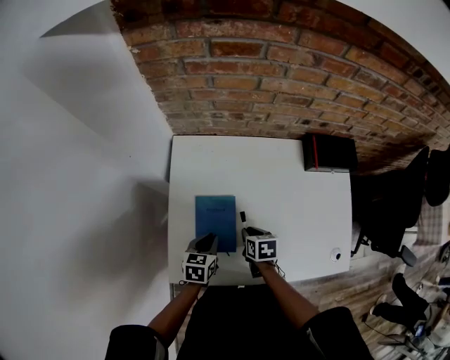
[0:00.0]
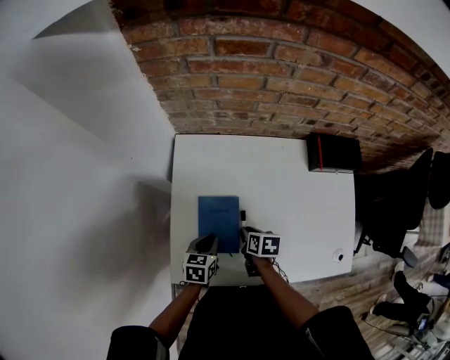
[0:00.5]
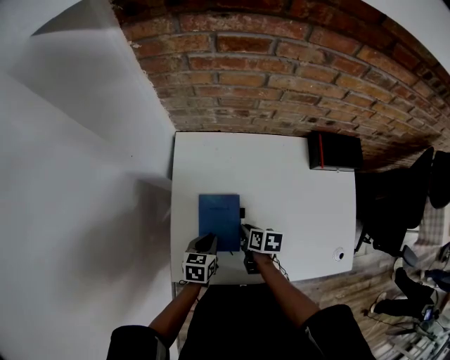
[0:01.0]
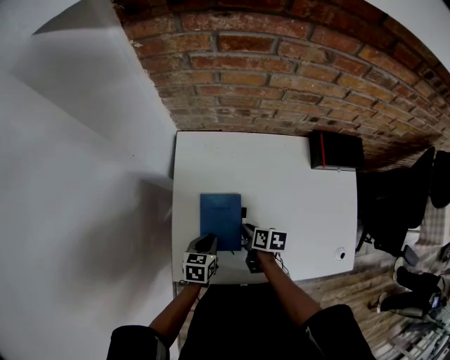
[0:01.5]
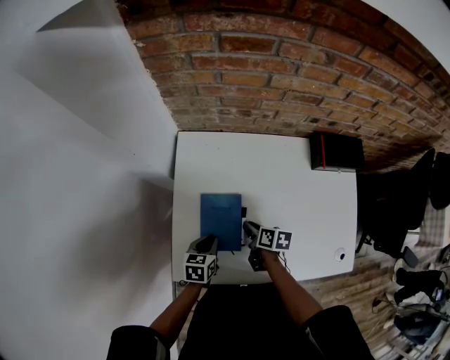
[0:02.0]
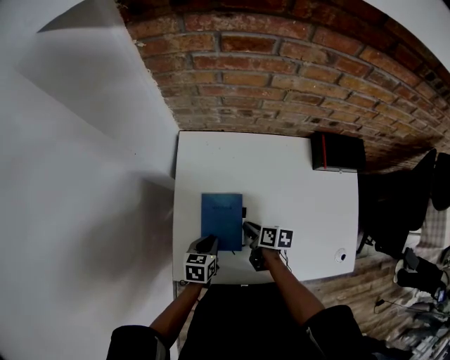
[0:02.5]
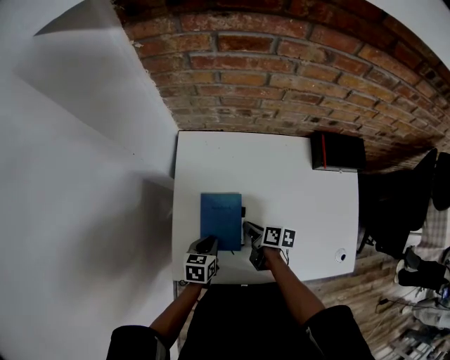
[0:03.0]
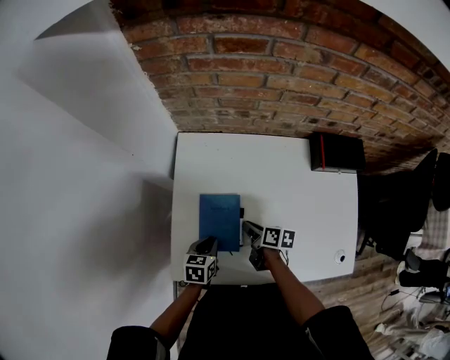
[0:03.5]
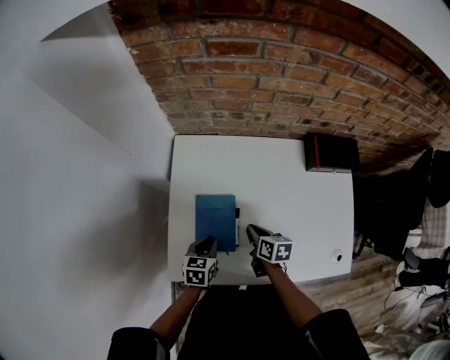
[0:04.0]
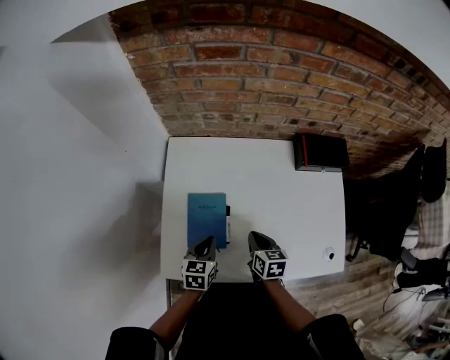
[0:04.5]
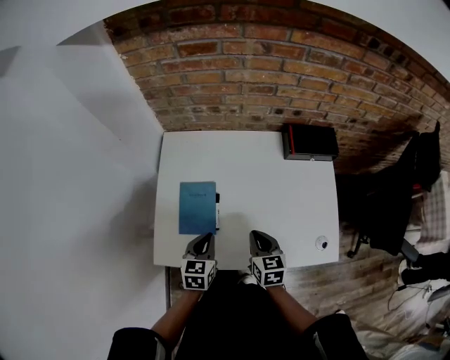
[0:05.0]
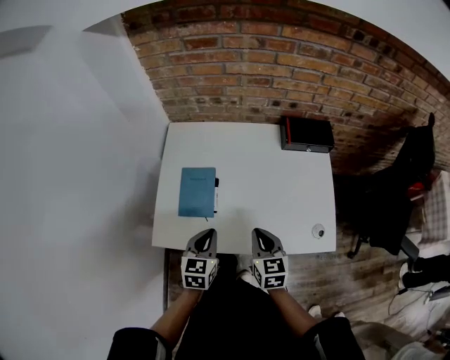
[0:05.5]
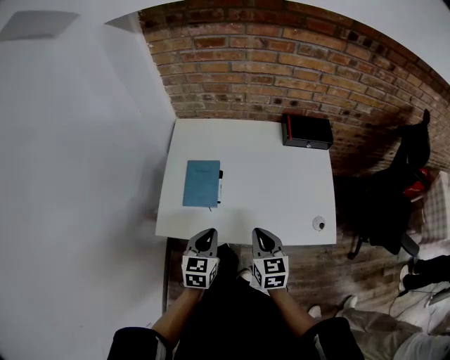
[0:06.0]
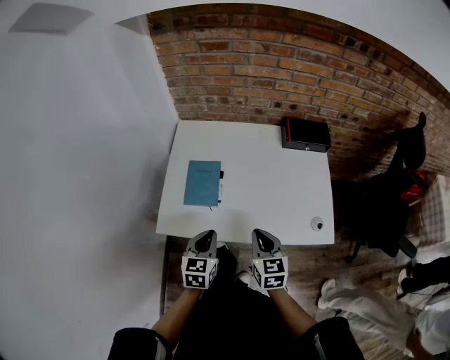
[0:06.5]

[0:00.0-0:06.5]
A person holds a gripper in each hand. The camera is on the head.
0:00.0 to 0:02.0: The right gripper rotates approximately 20 degrees.
0:02.0 to 0:04.5: The left gripper moves upward, roughly 5 cm. The right gripper travels to the right, upward and backward by approximately 10 cm, and changes its angle by roughly 30 degrees.
0:04.5 to 0:06.5: The grippers both shift backward and upward by some 20 cm. The right gripper swivels about 30 degrees.

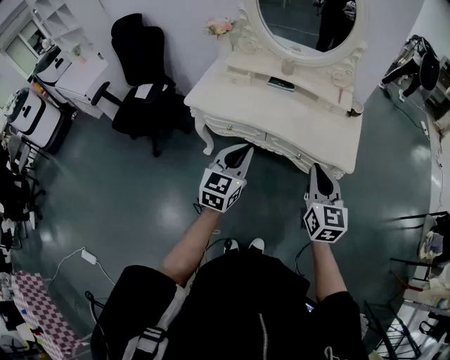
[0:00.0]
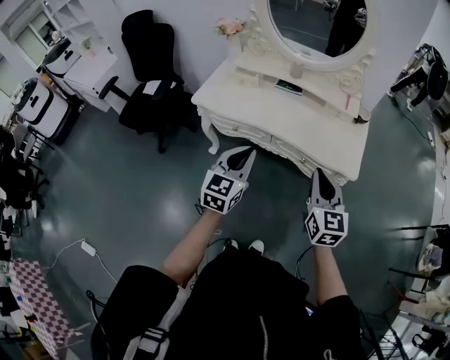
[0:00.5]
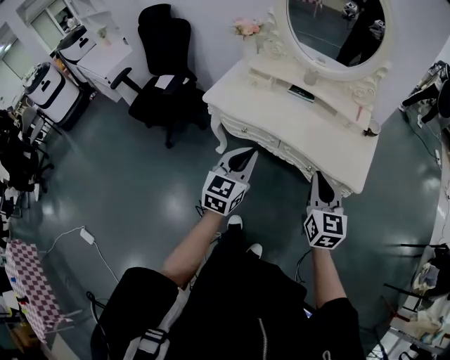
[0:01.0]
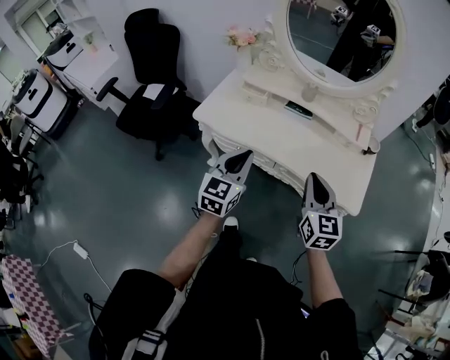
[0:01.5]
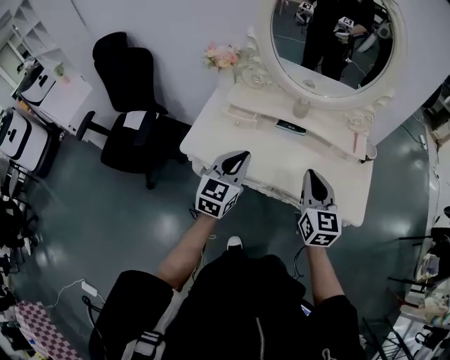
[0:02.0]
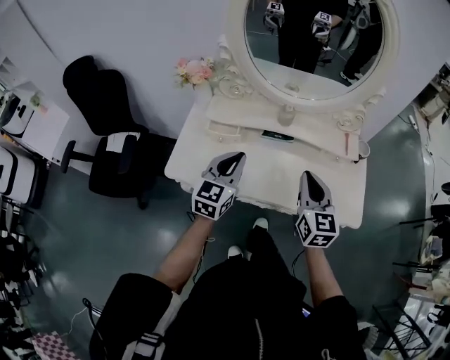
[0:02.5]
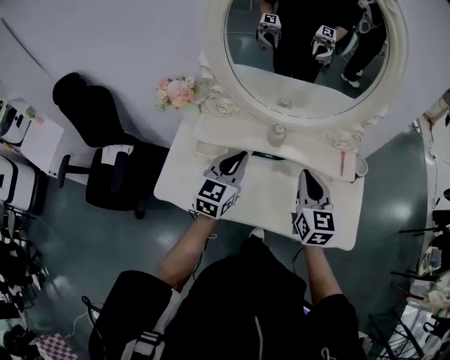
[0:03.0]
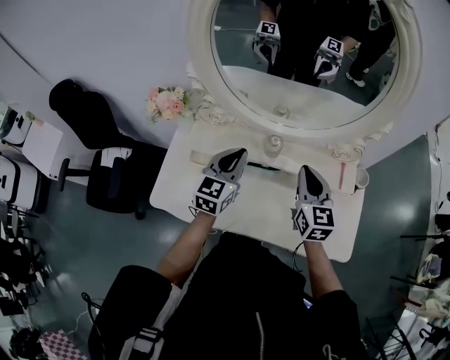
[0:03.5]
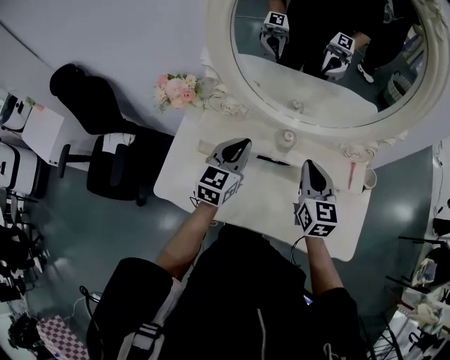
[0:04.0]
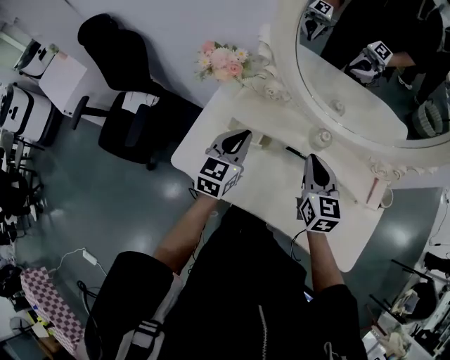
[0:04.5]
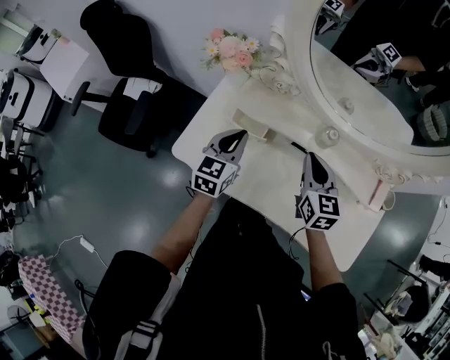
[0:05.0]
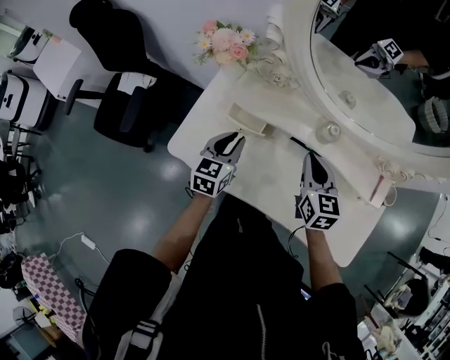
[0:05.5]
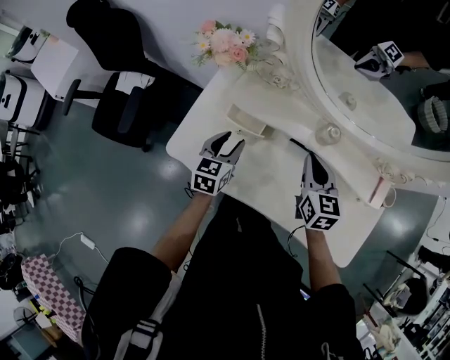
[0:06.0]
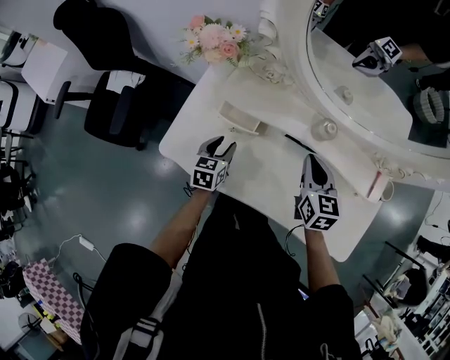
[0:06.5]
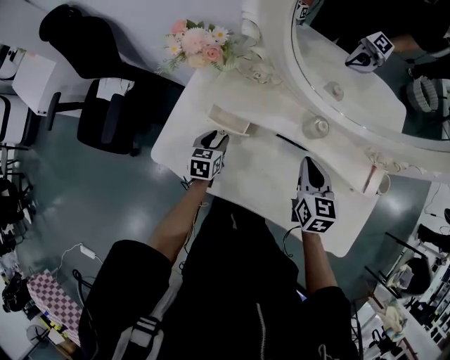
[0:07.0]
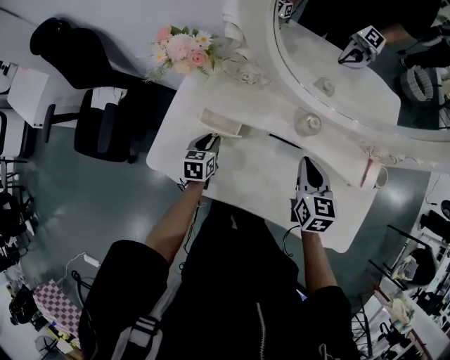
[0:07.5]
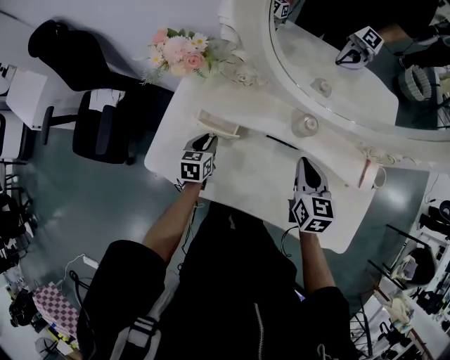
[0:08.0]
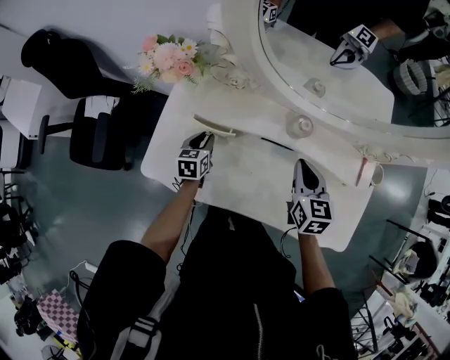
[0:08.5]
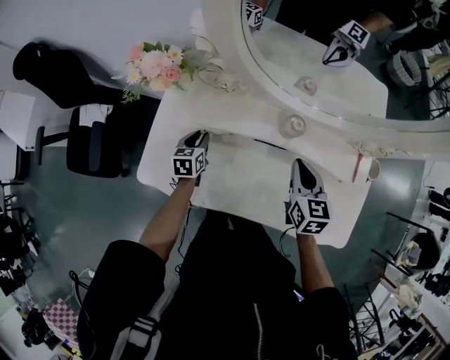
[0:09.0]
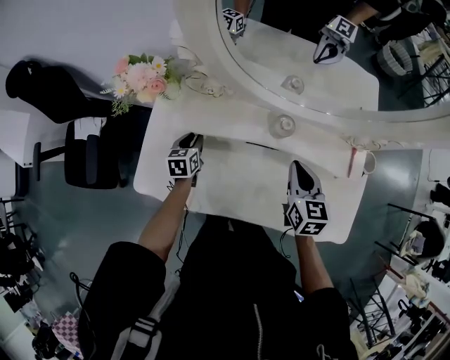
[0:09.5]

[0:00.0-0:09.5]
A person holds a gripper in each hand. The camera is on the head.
0:00.0 to 0:02.0: Both grippers travel together forward and to the left, approximately 25 cm.
0:02.0 to 0:04.0: Both grippers move forward, roughly 30 cm.
0:04.0 to 0:05.5: The two grippers go roughly 15 cm to the left and downward. The left gripper changes its angle by approximately 20 degrees.
0:05.5 to 0:07.5: The right gripper is displaced to the right by some 5 cm. Meanwhile the left gripper moves downward, about 15 cm, and opens and closes again.
0:07.5 to 0:09.5: The left gripper heads forward, covering about 5 cm.

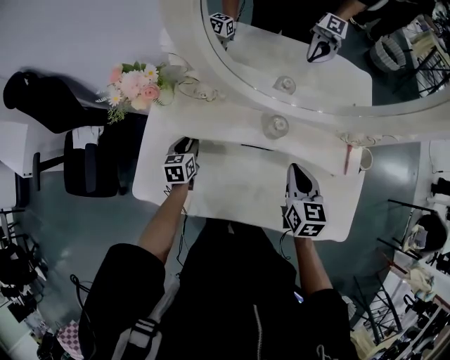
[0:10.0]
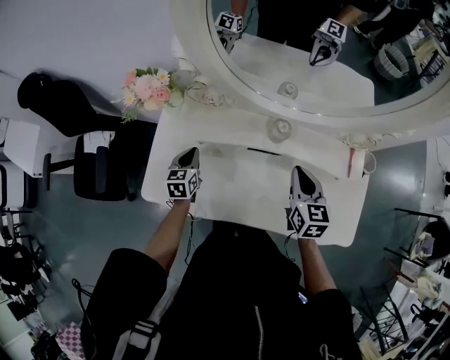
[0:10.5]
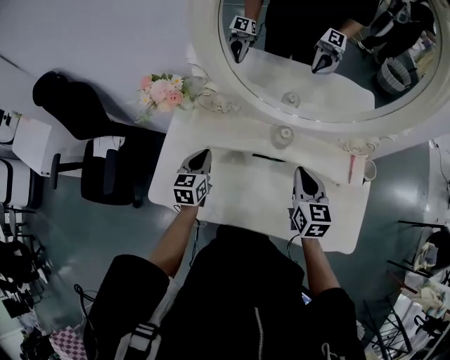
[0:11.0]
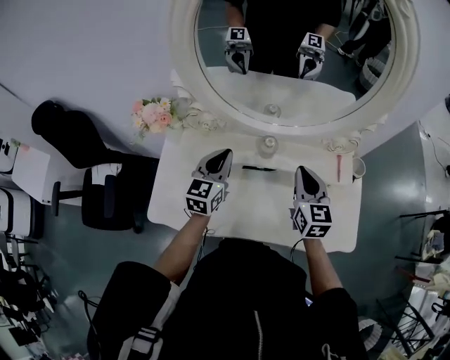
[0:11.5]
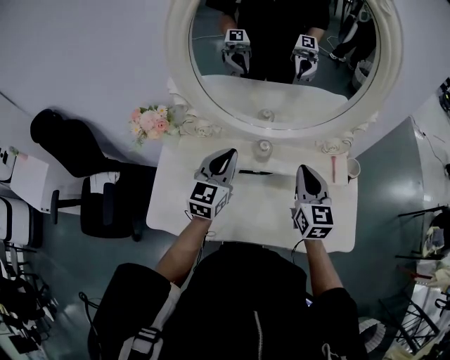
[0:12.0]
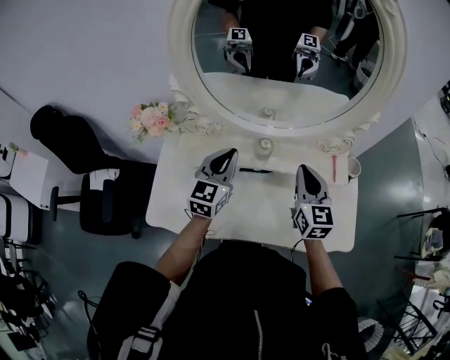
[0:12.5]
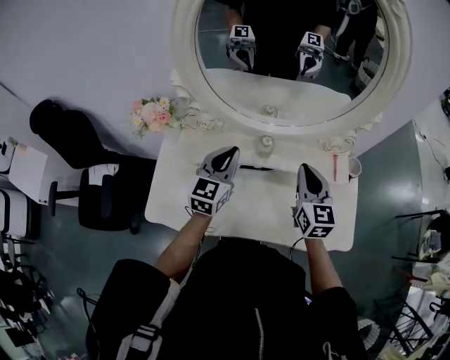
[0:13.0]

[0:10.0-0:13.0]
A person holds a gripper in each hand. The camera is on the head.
0:10.0 to 0:11.5: The left gripper travels upward and to the right by roughly 30 cm, swivels some 40 degrees, and closes its fingers, while the right gripper heads upward, covering roughly 10 cm.
0:11.5 to 0:13.0: There are only small adjustments of the grippers.

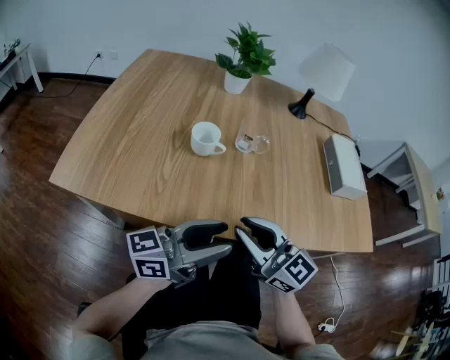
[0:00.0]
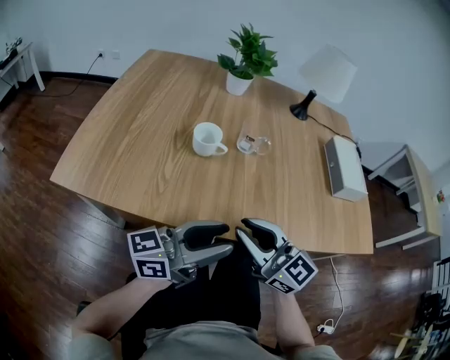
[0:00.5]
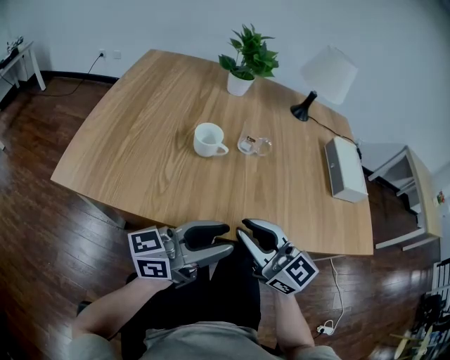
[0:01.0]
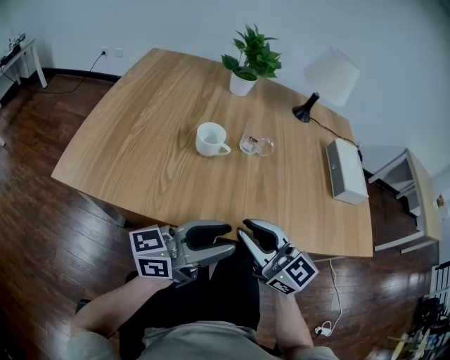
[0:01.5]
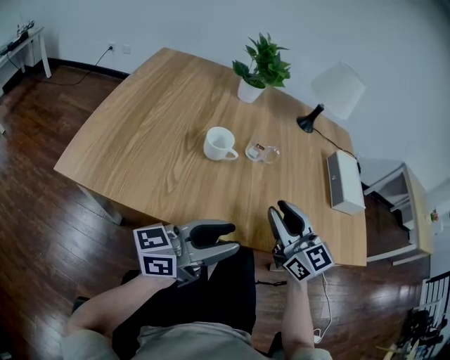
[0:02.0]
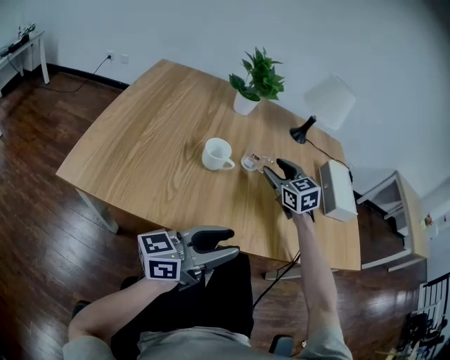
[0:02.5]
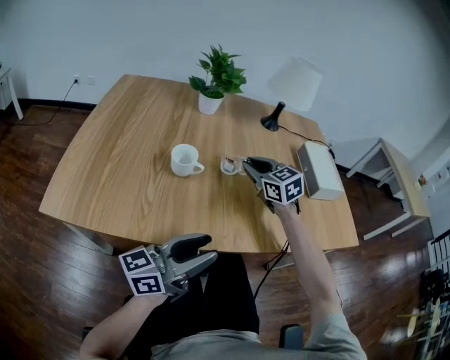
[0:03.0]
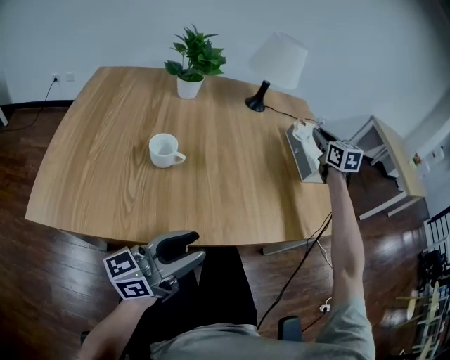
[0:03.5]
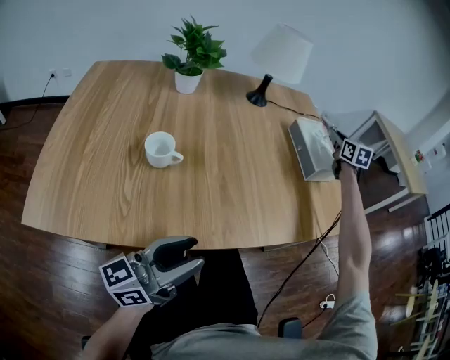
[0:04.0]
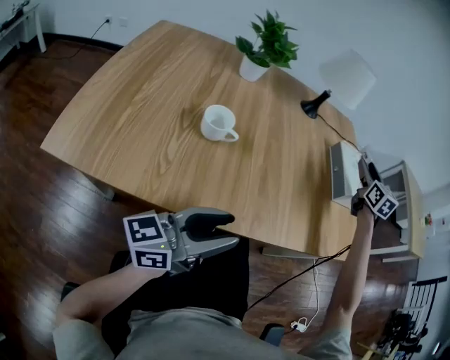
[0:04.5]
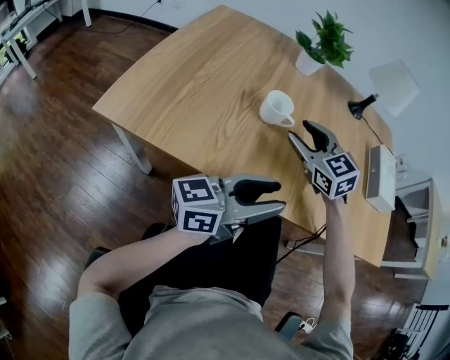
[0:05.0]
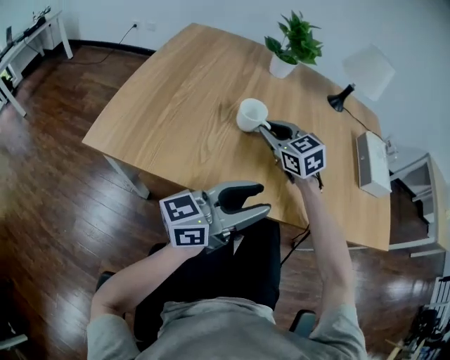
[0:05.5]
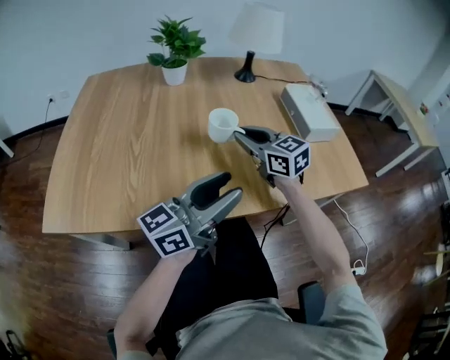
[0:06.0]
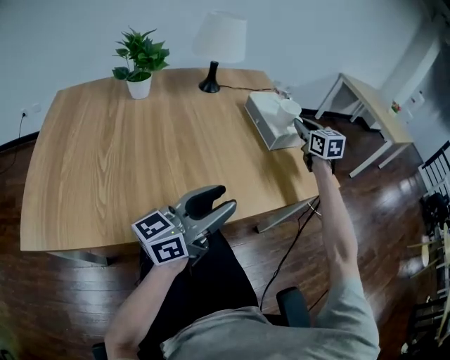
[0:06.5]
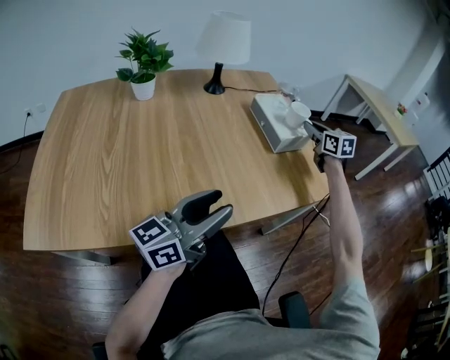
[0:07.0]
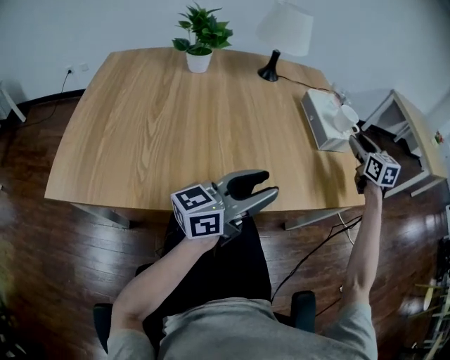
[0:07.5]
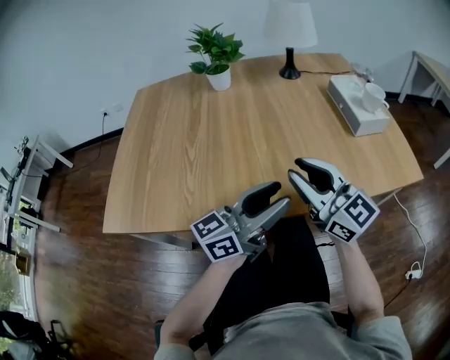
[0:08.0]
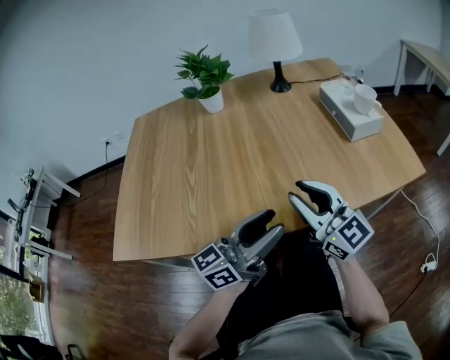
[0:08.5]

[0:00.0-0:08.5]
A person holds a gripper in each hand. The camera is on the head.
0:00.0 to 0:02.0: The right gripper goes some 10 cm forward and to the right.
0:02.0 to 0:04.0: The right gripper is displaced forward and to the right by about 50 cm, and swivels roughly 50 degrees.
0:04.0 to 0:06.5: The left gripper shifts by about 15 cm, while the right gripper swings up and down, about 15 cm each way, with 2 reversals, and opens, then closes once more.
0:06.5 to 0:08.5: The right gripper travels backward and to the left by some 40 cm, changes its angle by approximately 40 degrees, and opens, then closes once more, while the left gripper moves to the left, roughly 5 cm.
